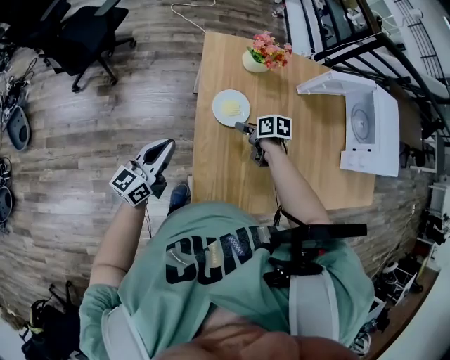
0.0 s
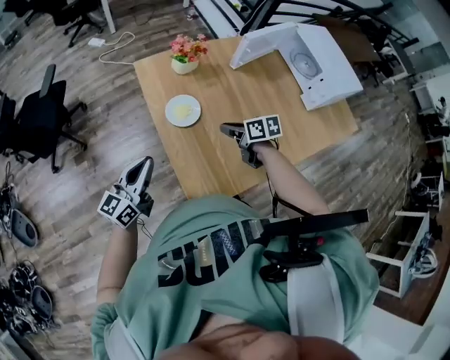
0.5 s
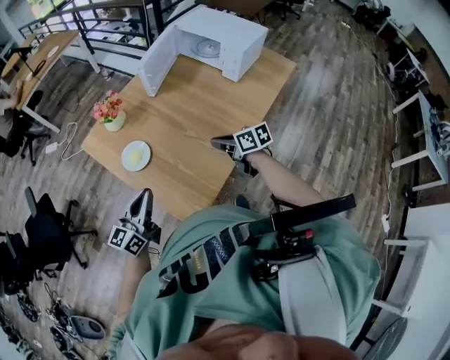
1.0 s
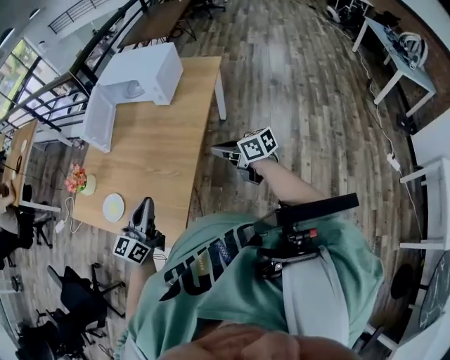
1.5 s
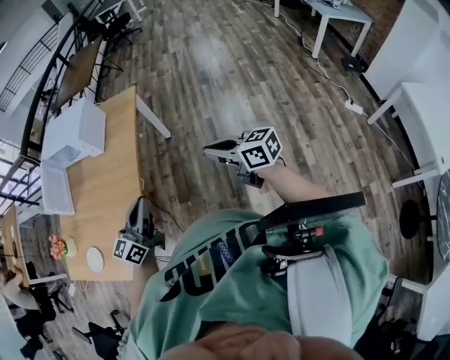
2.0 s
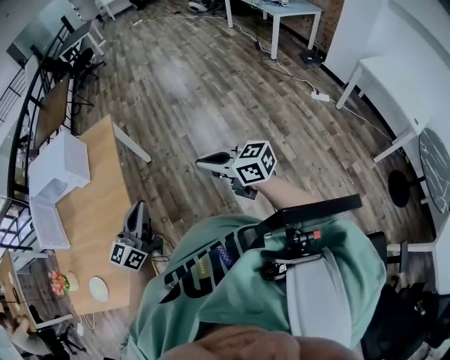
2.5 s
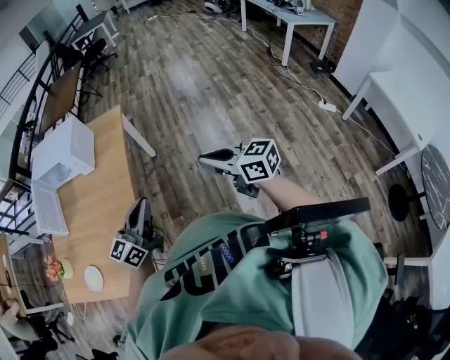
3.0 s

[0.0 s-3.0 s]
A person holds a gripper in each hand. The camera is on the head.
0.0 to 1.5 s: The left gripper changes place by approximately 40 cm, and changes its angle by some 60 degrees, while the right gripper shifts by roughly 60 cm, angles its fingers upward, by about 40 degrees, and closes its fingers.
1.5 to 3.0 s: The left gripper ends up about 30 cm from where it was, and turns by approximately 30 degrees. The right gripper ends up some 30 cm from where it was, and turns by some 30 degrees.

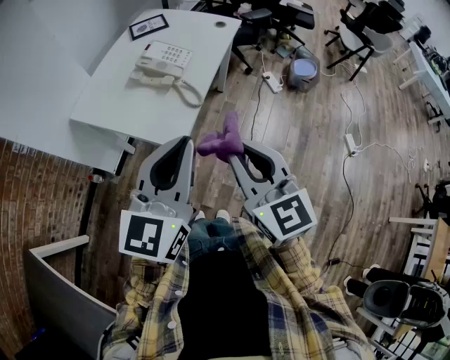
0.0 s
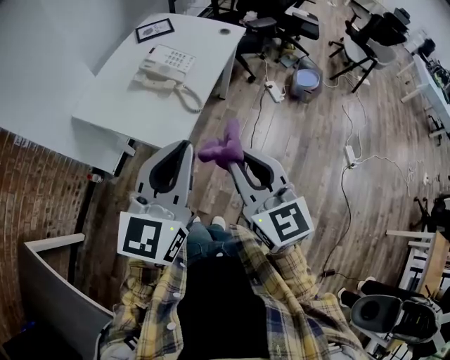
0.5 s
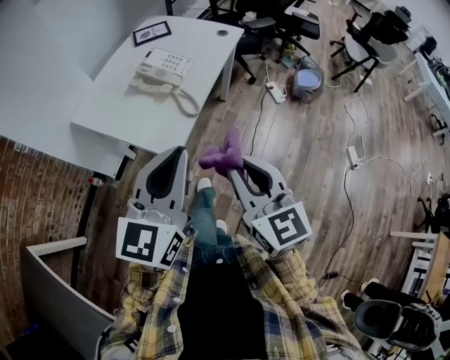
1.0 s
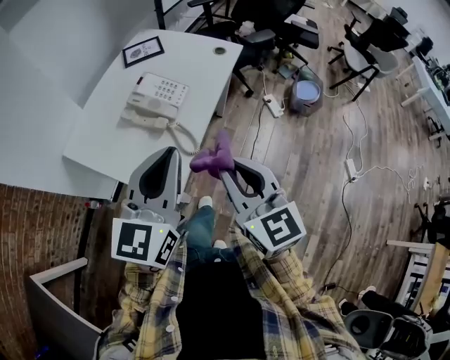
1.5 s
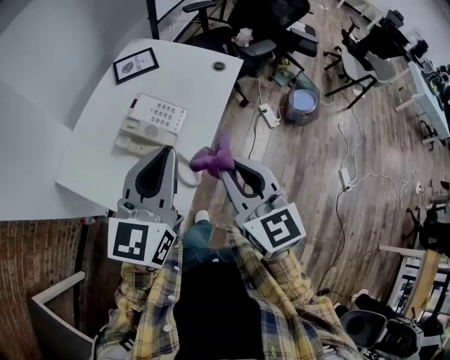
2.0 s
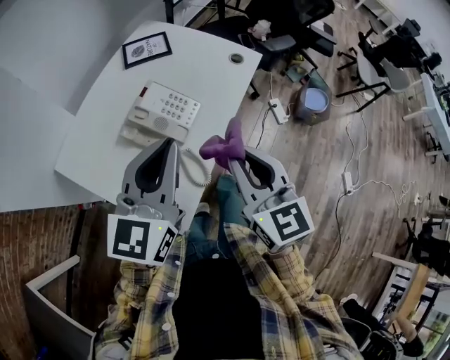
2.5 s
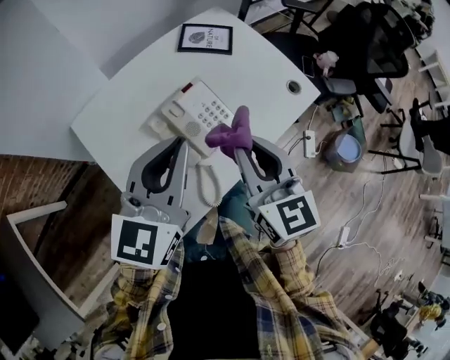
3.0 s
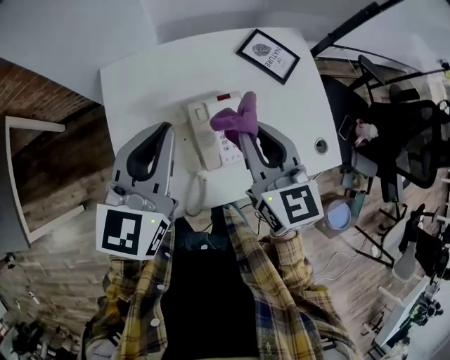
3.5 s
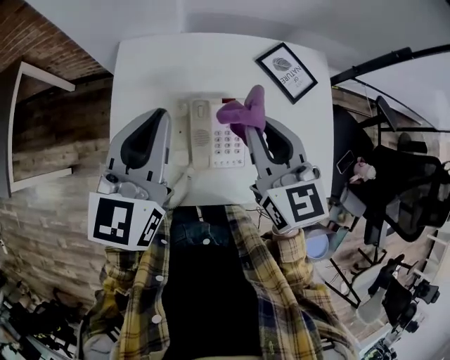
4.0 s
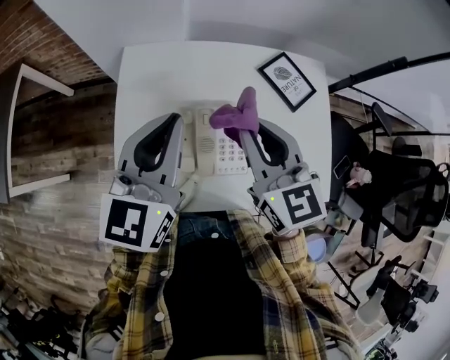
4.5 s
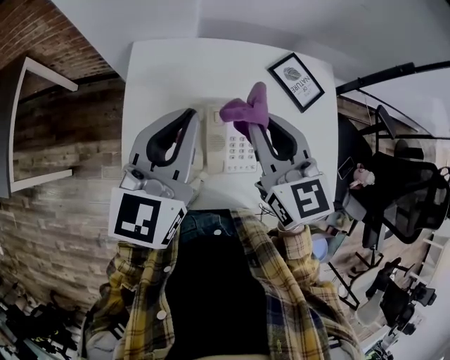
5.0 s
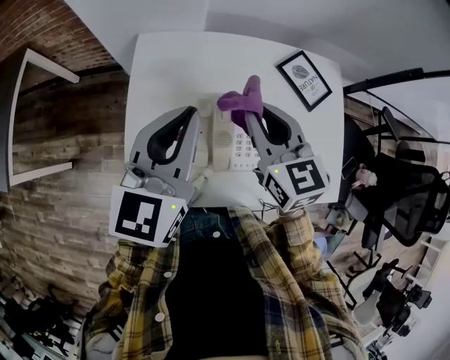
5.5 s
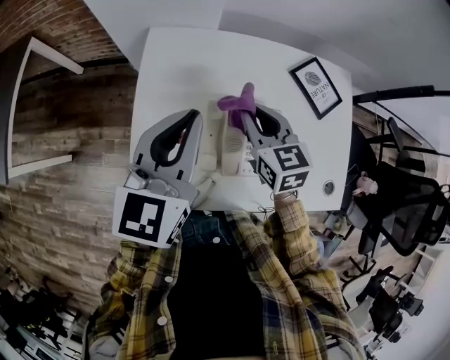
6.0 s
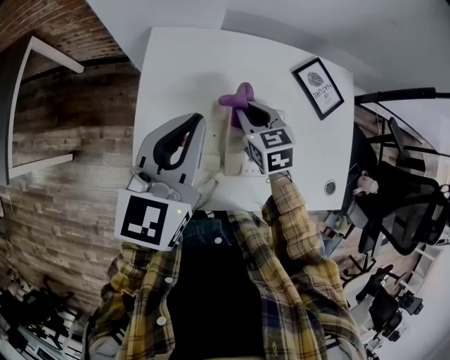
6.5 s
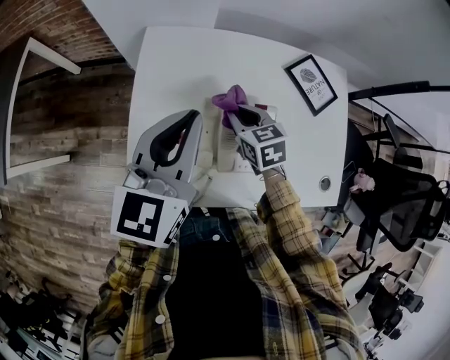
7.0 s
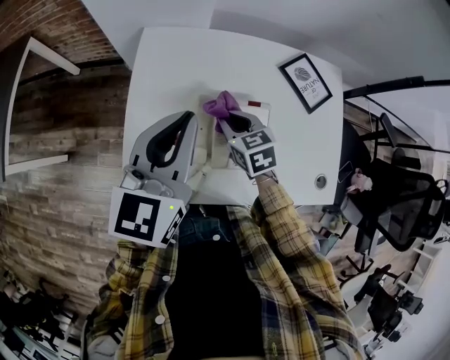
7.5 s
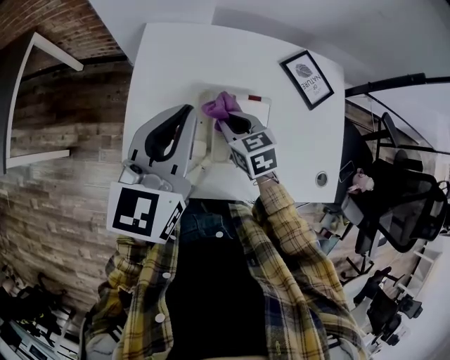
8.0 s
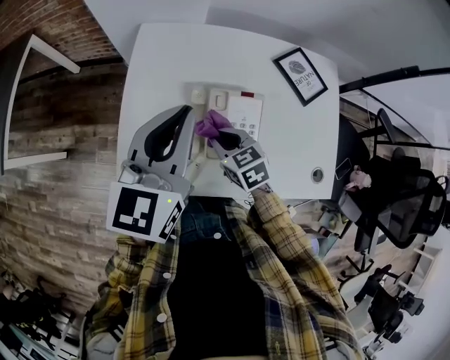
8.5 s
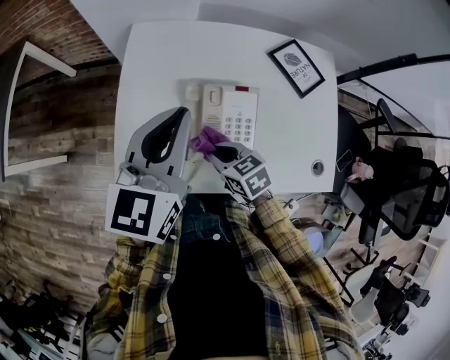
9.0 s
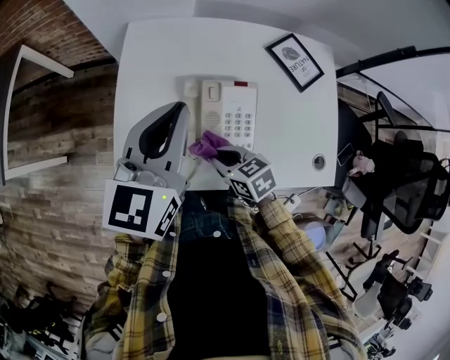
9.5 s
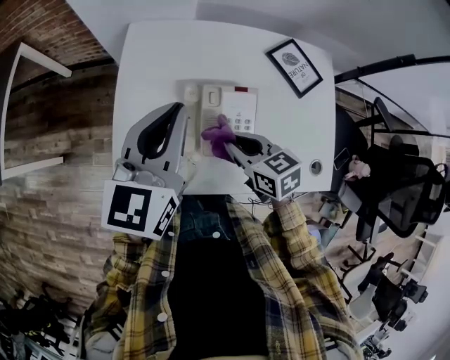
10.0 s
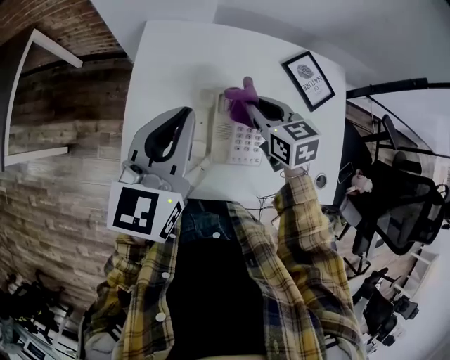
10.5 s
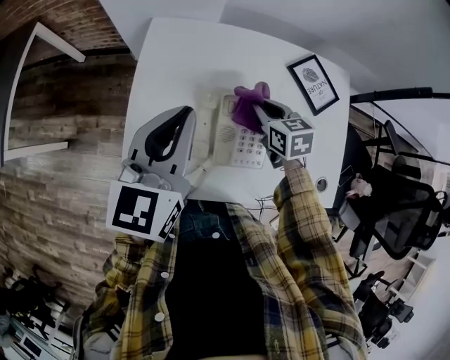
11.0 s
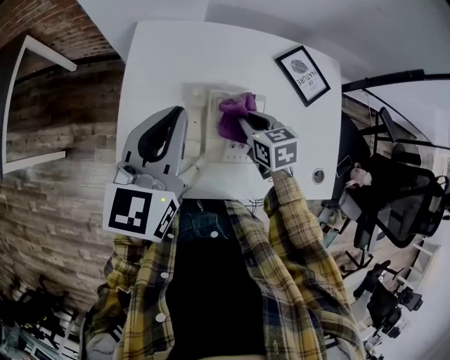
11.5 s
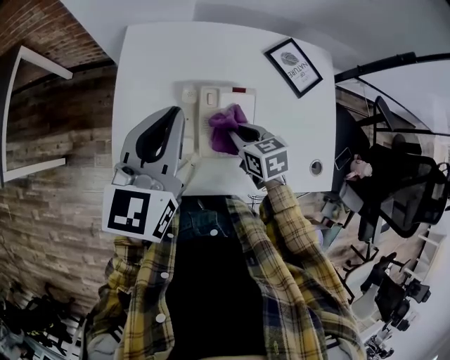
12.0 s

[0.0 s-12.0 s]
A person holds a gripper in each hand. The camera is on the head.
0.0 to 2.0 s: Both grippers move forward, about 25 cm.
2.0 to 4.0 s: The left gripper changes place by roughly 20 cm, and turns by approximately 70 degrees; the right gripper ends up some 35 cm from where it was, and rotates roughly 60 degrees.
4.0 to 6.0 s: The left gripper changes place by roughly 5 cm. The right gripper goes roughly 15 cm downward, to the left and forward.
6.0 to 8.0 s: The right gripper travels downward by about 10 cm.
8.0 to 10.0 s: The right gripper shifts approximately 10 cm backward.
10.0 to 12.0 s: The right gripper heads downward, covering roughly 5 cm, and reaches roughly 15 cm forward, then returns.

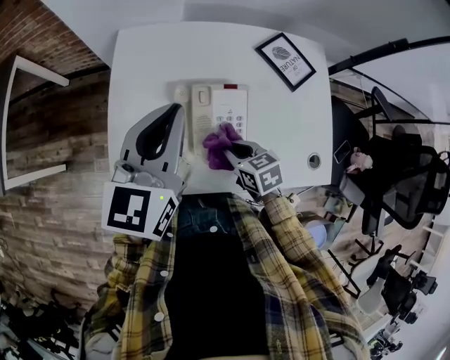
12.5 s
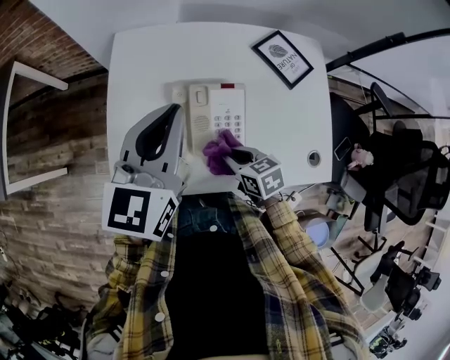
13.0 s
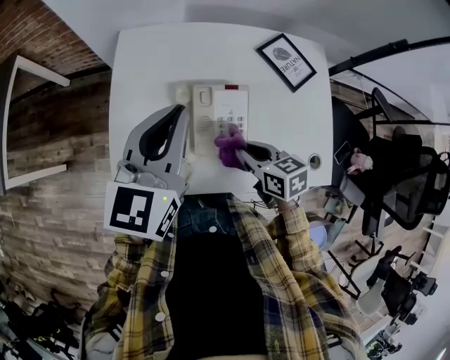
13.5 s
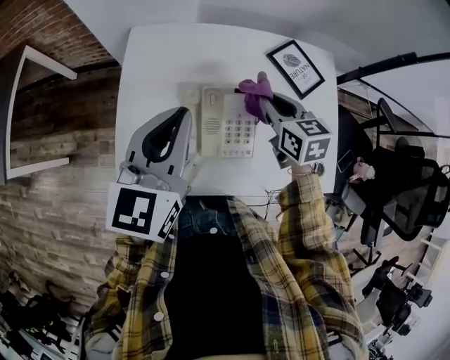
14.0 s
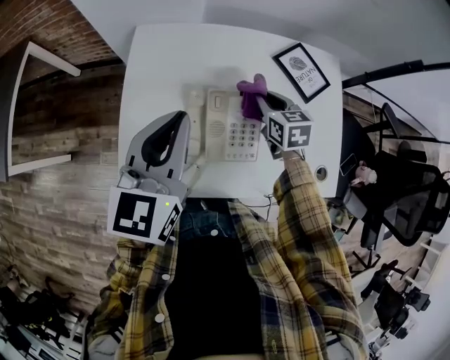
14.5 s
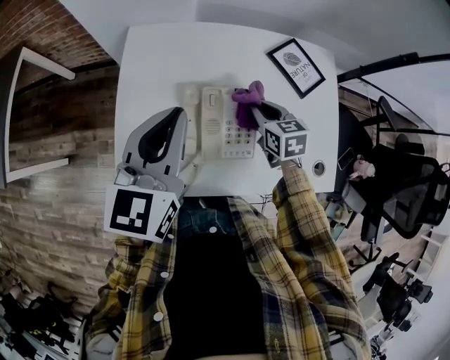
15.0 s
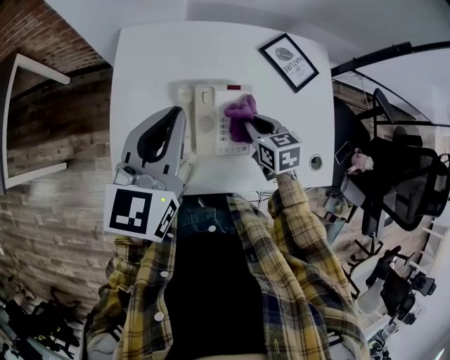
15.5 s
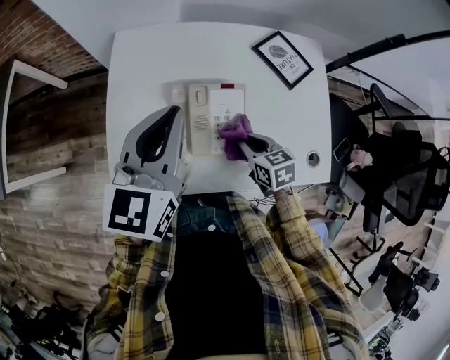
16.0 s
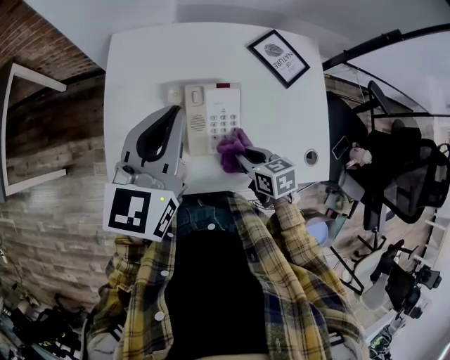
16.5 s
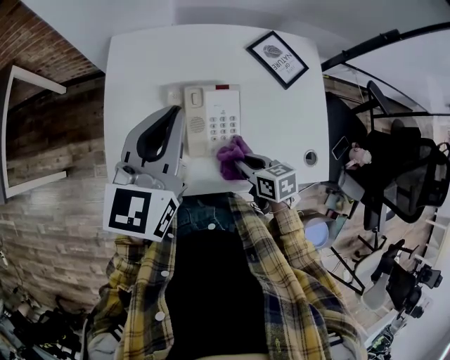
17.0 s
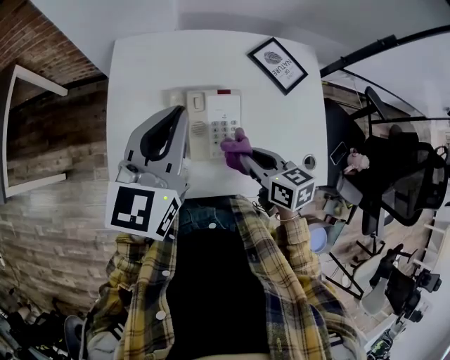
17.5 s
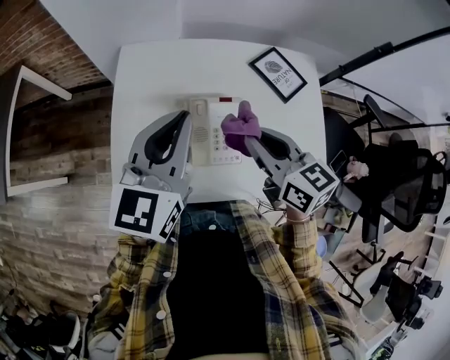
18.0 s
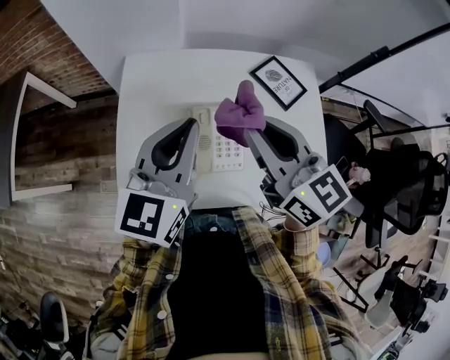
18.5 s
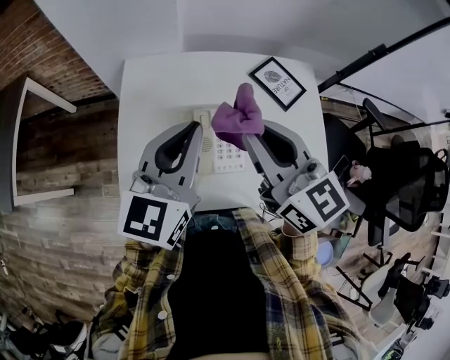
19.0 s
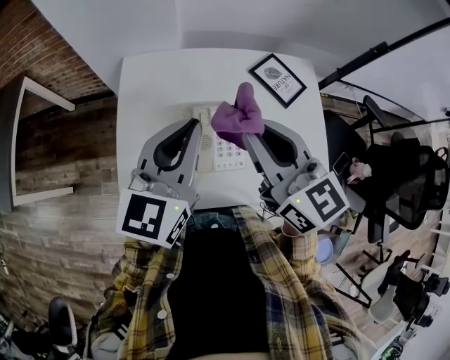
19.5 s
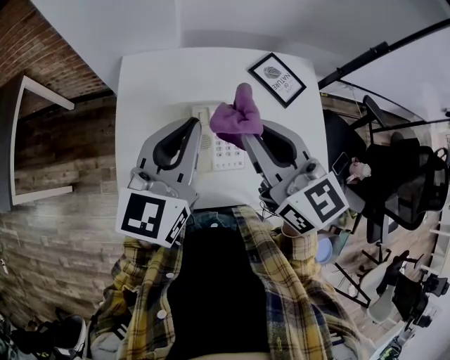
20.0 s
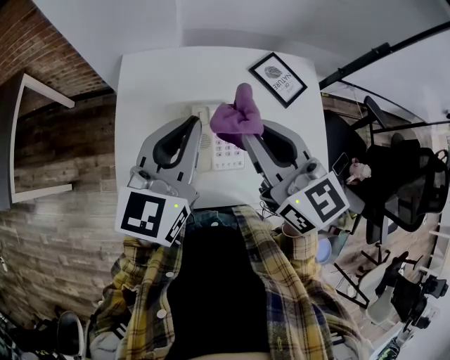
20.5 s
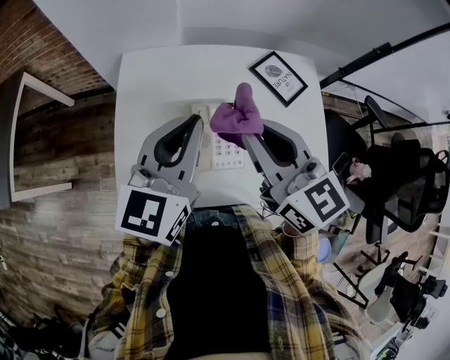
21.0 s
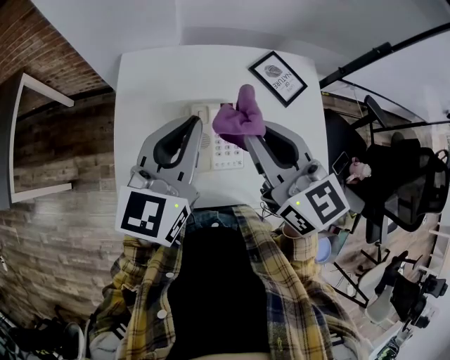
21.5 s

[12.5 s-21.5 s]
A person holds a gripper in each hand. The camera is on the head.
12.5 to 14.5 s: The right gripper travels forward and to the right by about 20 cm.
14.5 to 17.0 s: The right gripper goes approximately 20 cm backward, and rotates some 20 degrees.
17.0 to 19.5 s: The right gripper heads upward, covering approximately 30 cm, and points its fingers some 40 degrees further upward.
19.5 to 21.5 s: The two grippers keep their place.

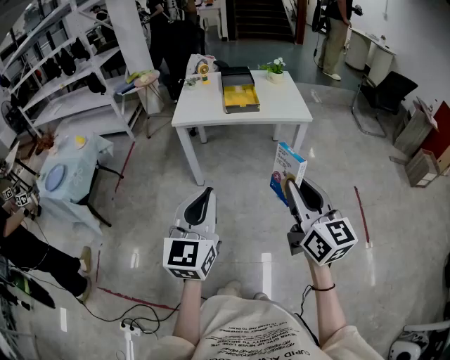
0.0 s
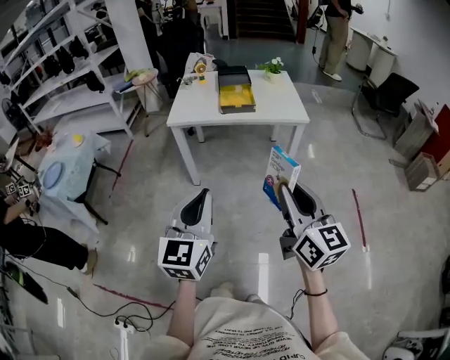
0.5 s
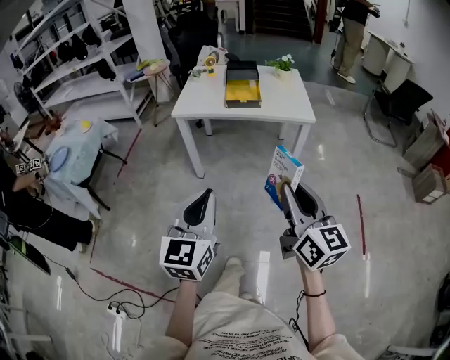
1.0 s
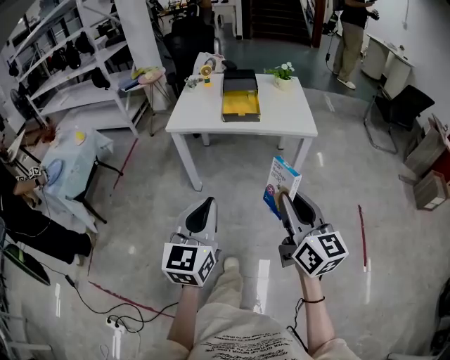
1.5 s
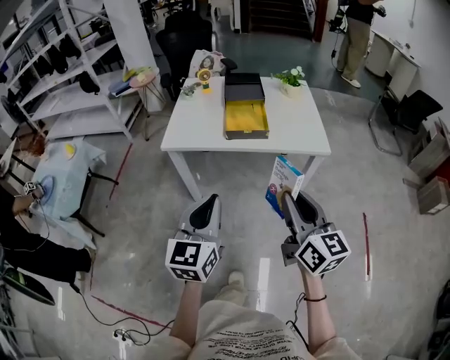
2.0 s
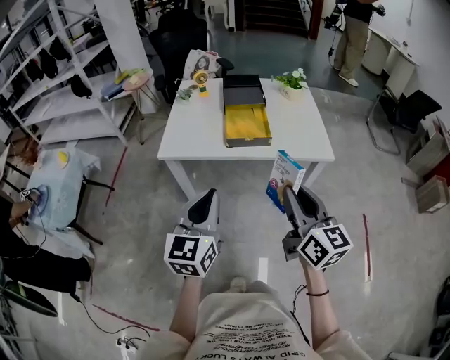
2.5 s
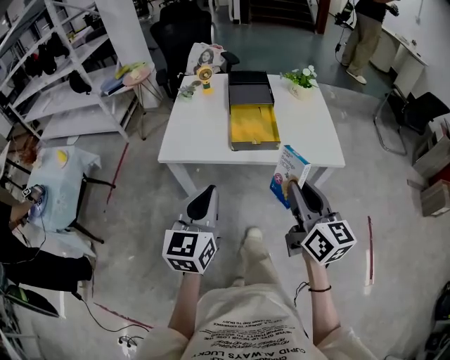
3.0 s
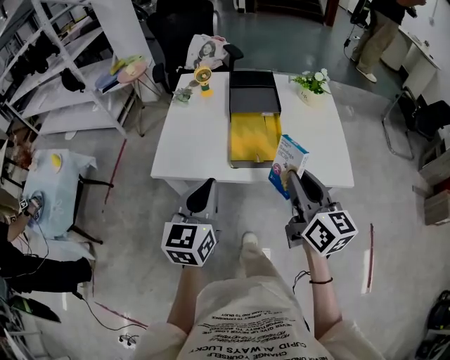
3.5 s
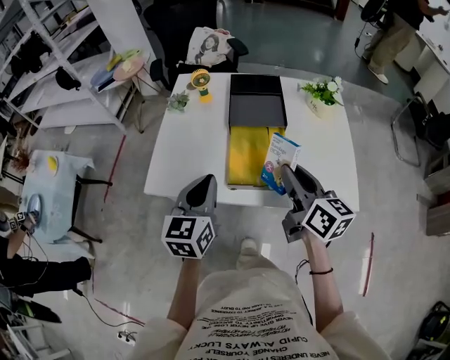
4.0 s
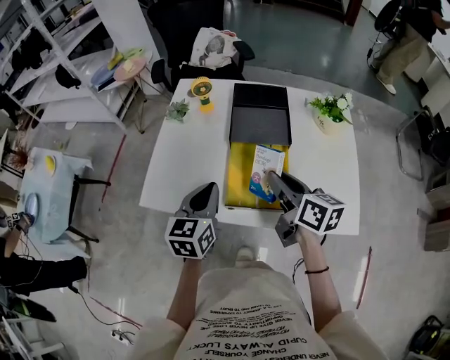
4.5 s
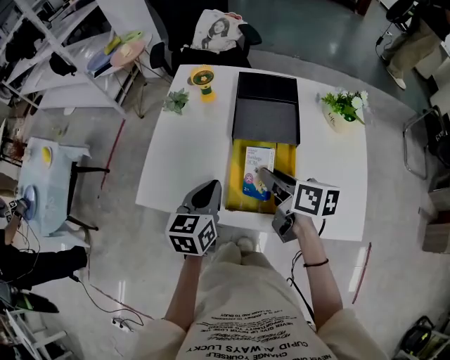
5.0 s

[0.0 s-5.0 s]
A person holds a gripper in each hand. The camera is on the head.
0.0 to 2.5 s: The grippers both shift forward by some 30 cm.
2.5 to 5.0 s: The two grippers go roughly 40 cm forward. The left gripper changes its angle by roughly 30 degrees. The right gripper swivels approximately 50 degrees.
